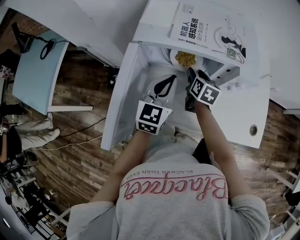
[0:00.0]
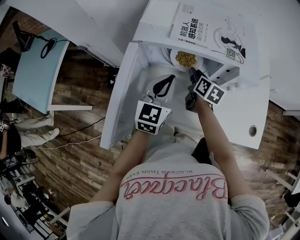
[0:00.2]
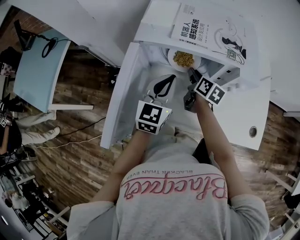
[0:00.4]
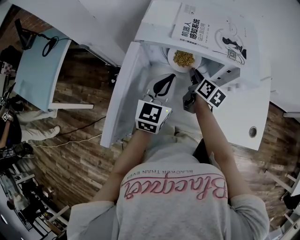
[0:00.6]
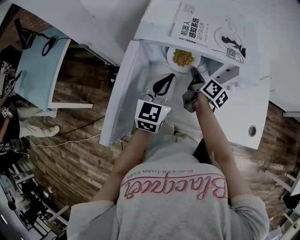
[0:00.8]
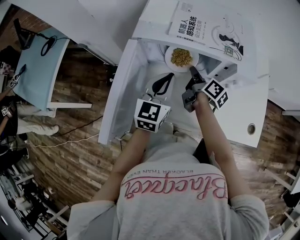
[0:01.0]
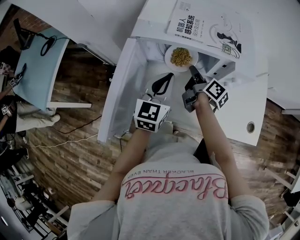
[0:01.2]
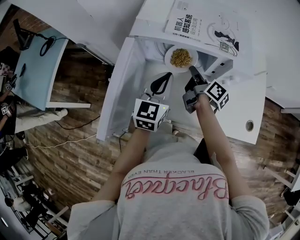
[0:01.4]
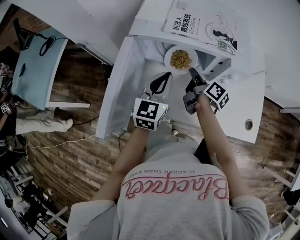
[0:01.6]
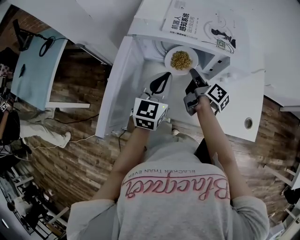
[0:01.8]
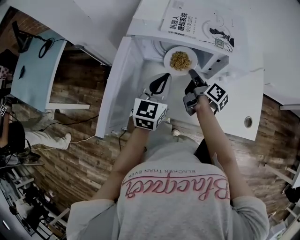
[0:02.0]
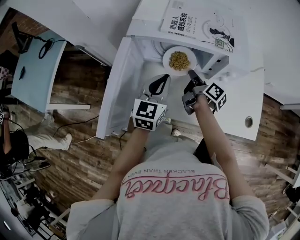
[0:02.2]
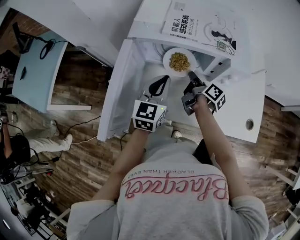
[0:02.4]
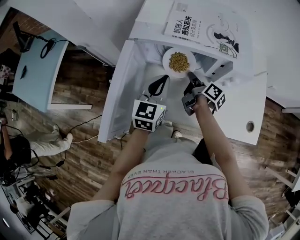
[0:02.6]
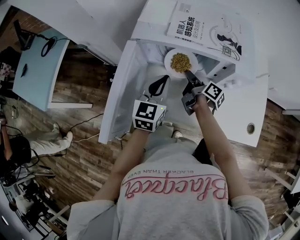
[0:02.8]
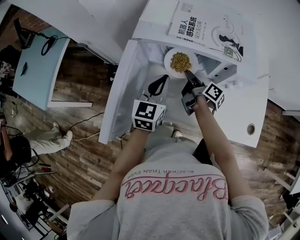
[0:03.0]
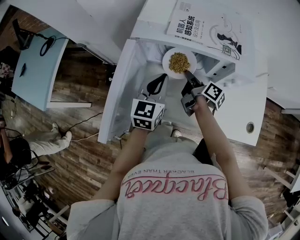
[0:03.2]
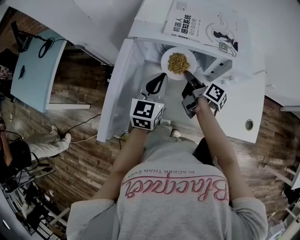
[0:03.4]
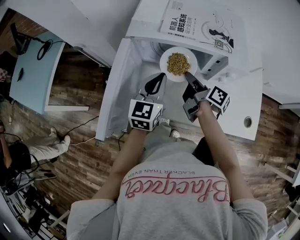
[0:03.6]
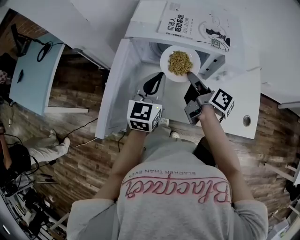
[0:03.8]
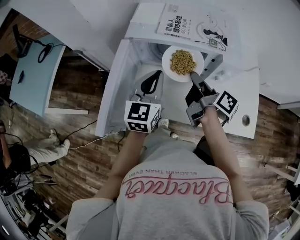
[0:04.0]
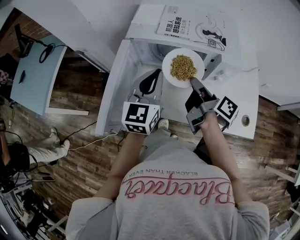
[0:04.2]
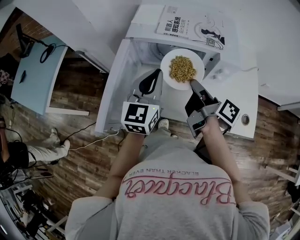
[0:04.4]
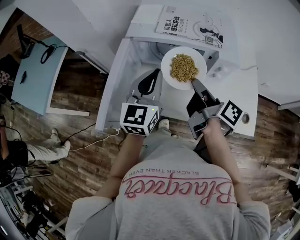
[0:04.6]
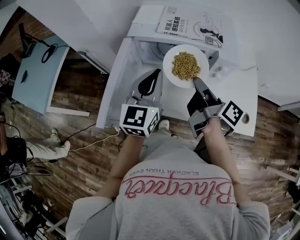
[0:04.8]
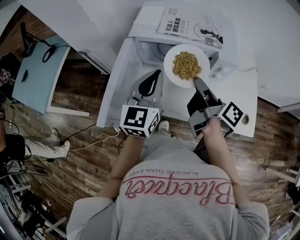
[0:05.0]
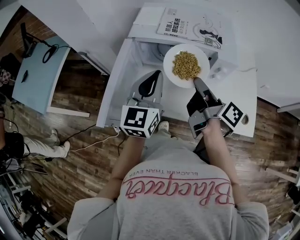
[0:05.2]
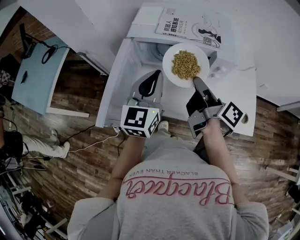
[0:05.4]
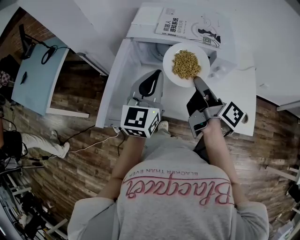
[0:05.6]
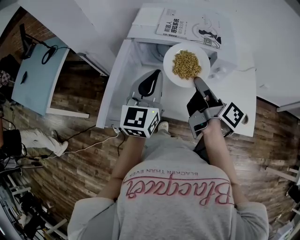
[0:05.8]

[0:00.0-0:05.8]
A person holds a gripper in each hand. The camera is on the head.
0:00.0 to 0:01.4: The right gripper rotates around the line of its fingers by some 40 degrees, clockwise from behind, and closes its fingers.
0:01.4 to 0:02.8: The right gripper heads downward, covering roughly 5 cm.
0:02.8 to 0:04.4: The left gripper shifts approximately 10 cm upward, while the right gripper moves upward and backward, about 20 cm.
0:04.4 to 0:05.8: The grippers stay close to where they were, moving slightly.

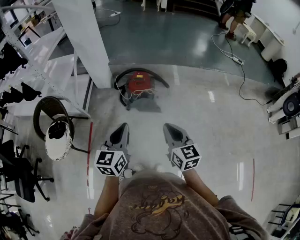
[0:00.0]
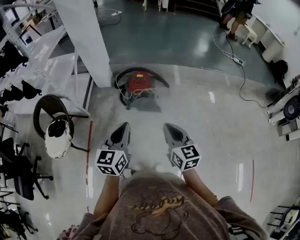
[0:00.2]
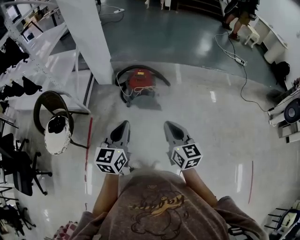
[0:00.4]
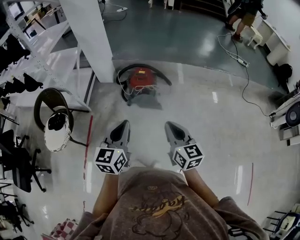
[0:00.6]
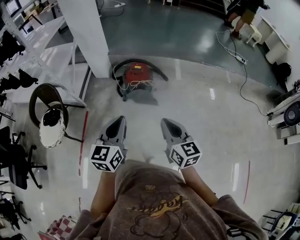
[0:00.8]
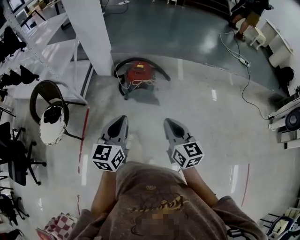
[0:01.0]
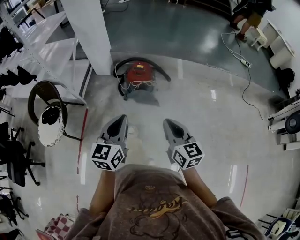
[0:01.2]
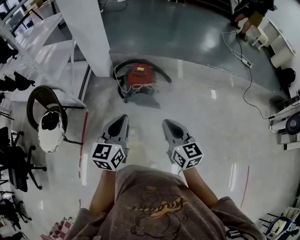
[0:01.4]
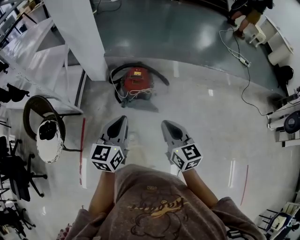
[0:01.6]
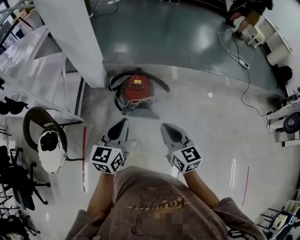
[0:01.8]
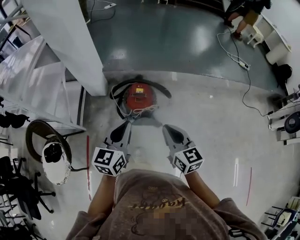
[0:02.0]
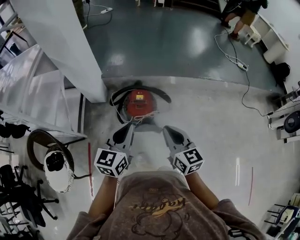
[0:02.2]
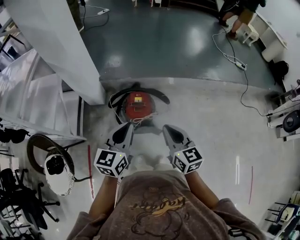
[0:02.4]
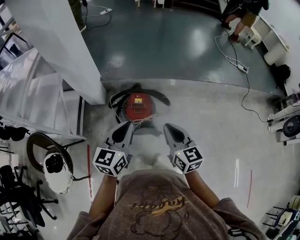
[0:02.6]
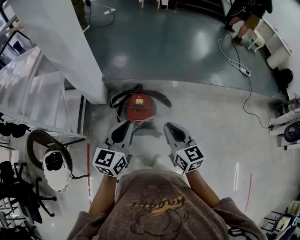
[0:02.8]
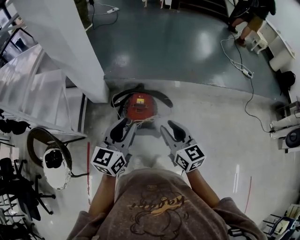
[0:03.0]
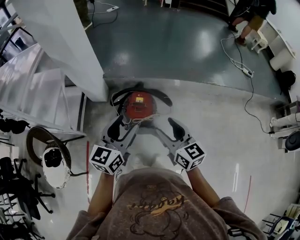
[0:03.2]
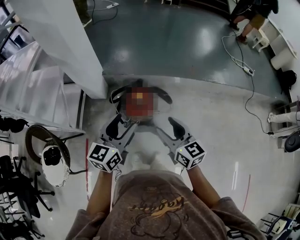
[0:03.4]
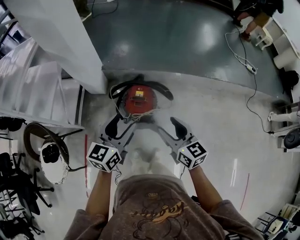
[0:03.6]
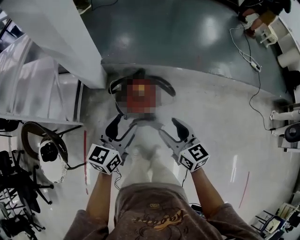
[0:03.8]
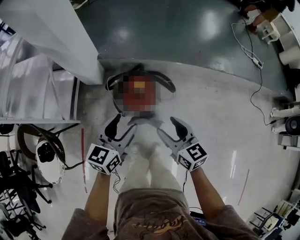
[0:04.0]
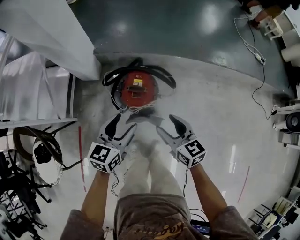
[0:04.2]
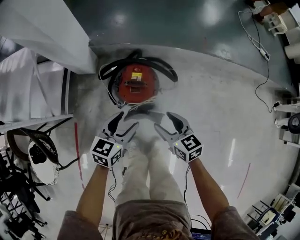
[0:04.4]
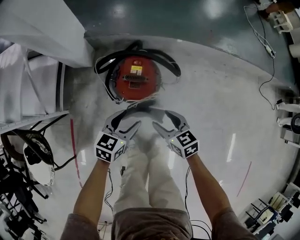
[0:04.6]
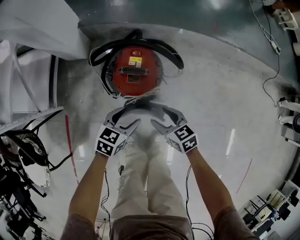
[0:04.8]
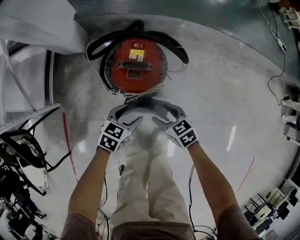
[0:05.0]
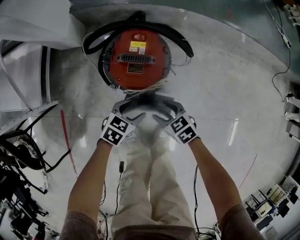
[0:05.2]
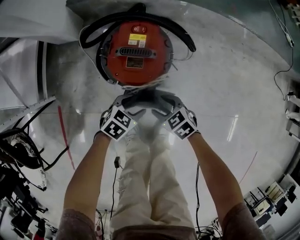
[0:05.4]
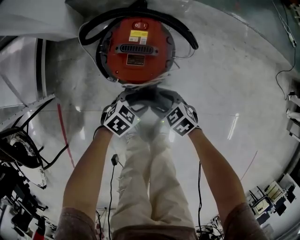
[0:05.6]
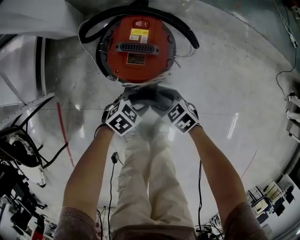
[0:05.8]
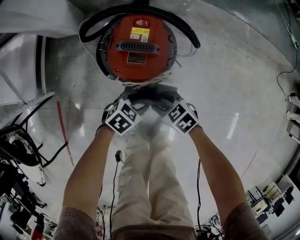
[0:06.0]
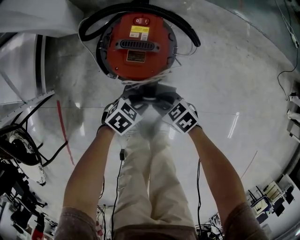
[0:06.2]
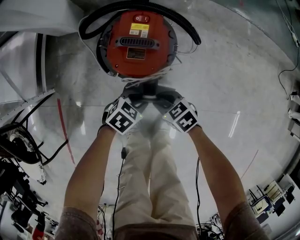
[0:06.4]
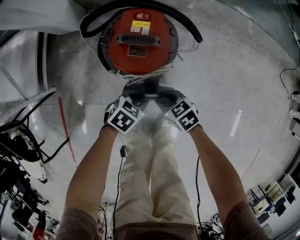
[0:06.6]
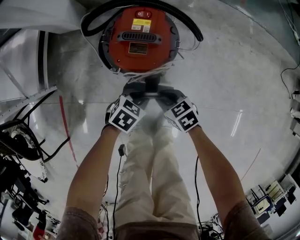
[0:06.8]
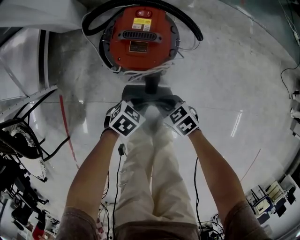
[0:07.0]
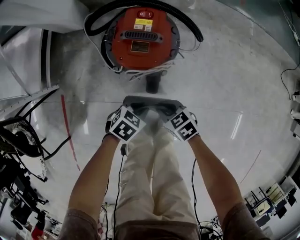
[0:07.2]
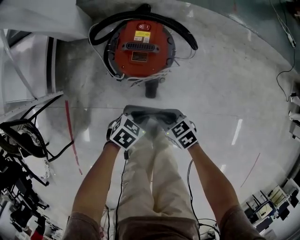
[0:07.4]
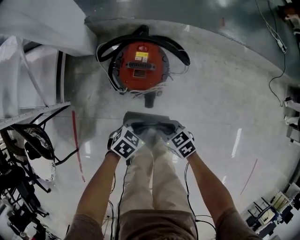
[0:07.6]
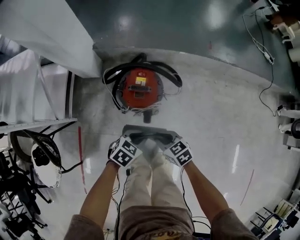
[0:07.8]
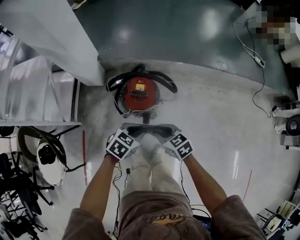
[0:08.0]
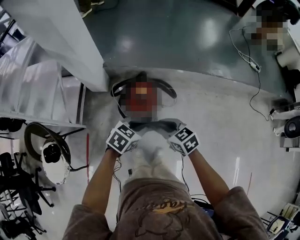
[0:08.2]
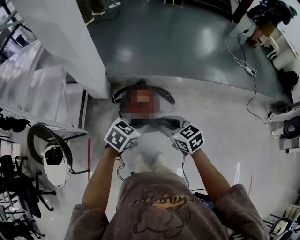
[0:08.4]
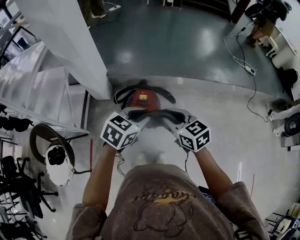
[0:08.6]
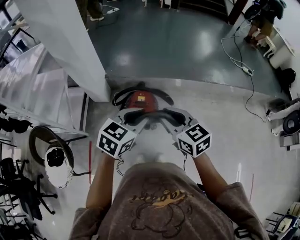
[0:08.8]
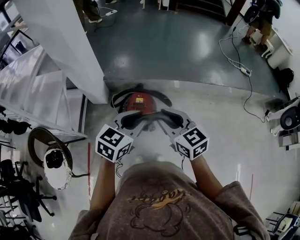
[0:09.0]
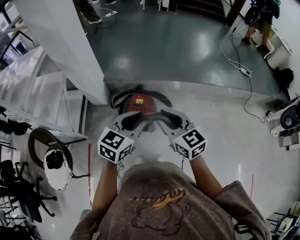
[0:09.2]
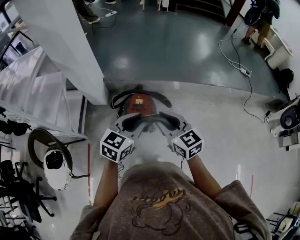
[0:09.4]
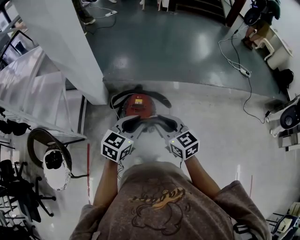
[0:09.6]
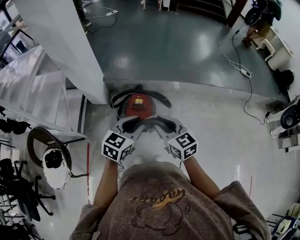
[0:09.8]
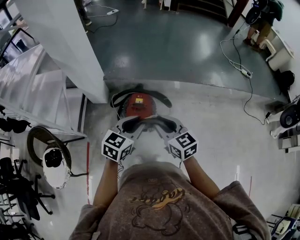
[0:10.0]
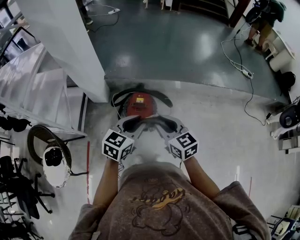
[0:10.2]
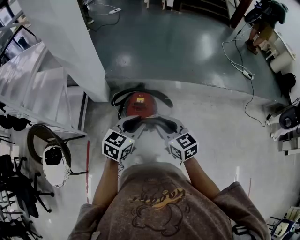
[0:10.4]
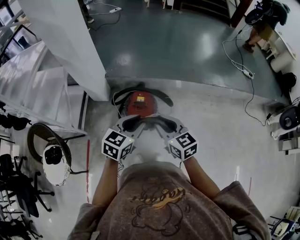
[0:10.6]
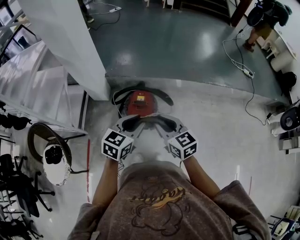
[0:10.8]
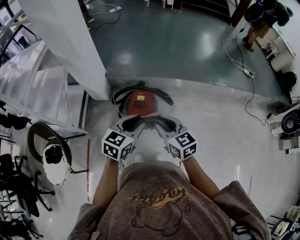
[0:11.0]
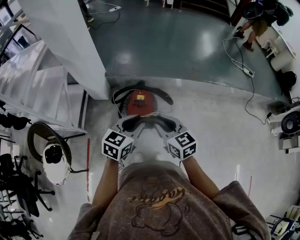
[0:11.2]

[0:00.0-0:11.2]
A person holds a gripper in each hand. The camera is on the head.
0:00.0 to 0:01.6: The grippers both shift forward by roughly 10 cm.
0:01.6 to 0:03.2: The two grippers go some 20 cm forward. The left gripper opens its fingers, while the right gripper opens its fingers.
0:03.2 to 0:04.8: The grippers both shift downward by roughly 40 cm. The left gripper points its fingers about 30 degrees further downward; the right gripper angles its fingers downward, by about 30 degrees.
0:04.8 to 0:06.4: Both grippers move downward, about 15 cm. The left gripper swivels about 20 degrees, and closes up. Meanwhile the right gripper rotates roughly 20 degrees, and closes up.
0:06.4 to 0:08.0: Both grippers move upward, about 35 cm. The right gripper turns by approximately 20 degrees.
0:08.0 to 0:09.6: Both grippers move upward, about 20 cm. The right gripper rotates some 30 degrees; the left gripper rotates some 30 degrees.
0:09.6 to 0:11.2: The grippers make only small movements.

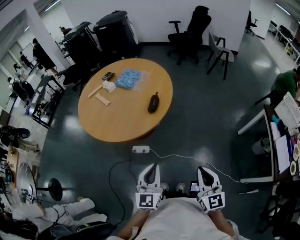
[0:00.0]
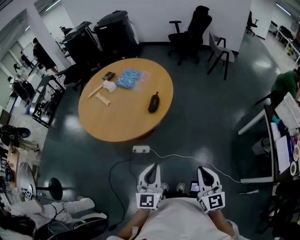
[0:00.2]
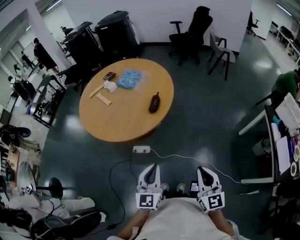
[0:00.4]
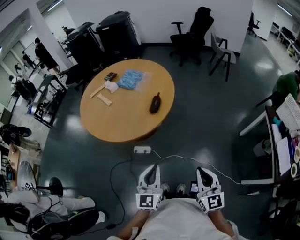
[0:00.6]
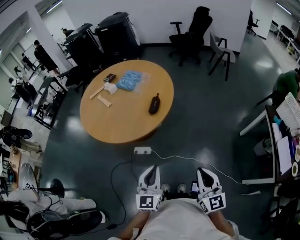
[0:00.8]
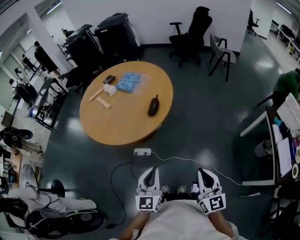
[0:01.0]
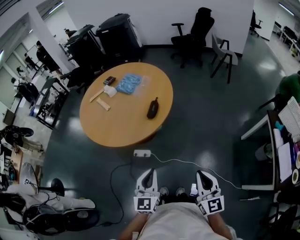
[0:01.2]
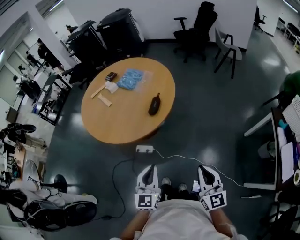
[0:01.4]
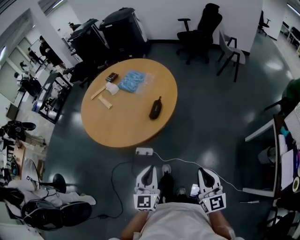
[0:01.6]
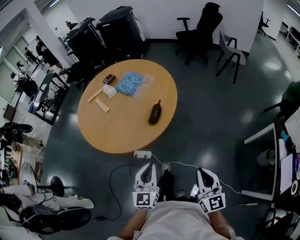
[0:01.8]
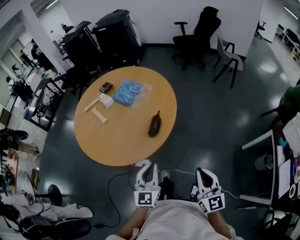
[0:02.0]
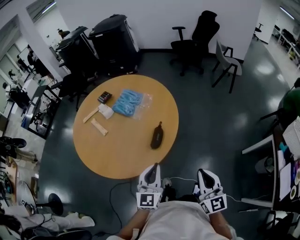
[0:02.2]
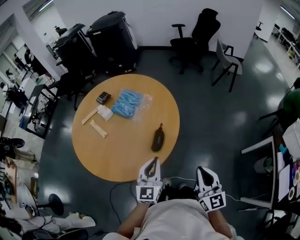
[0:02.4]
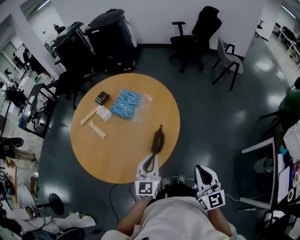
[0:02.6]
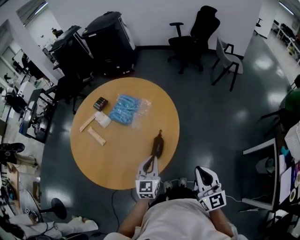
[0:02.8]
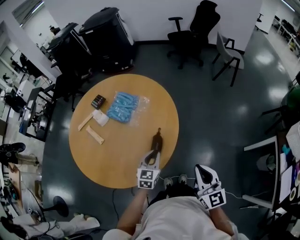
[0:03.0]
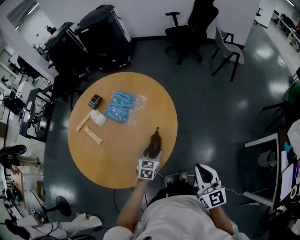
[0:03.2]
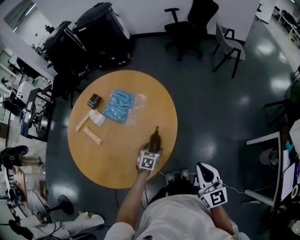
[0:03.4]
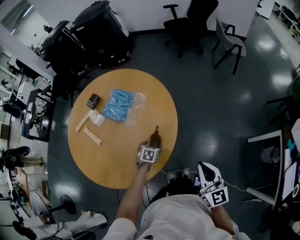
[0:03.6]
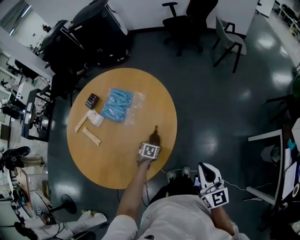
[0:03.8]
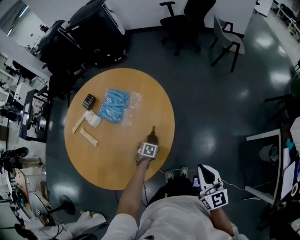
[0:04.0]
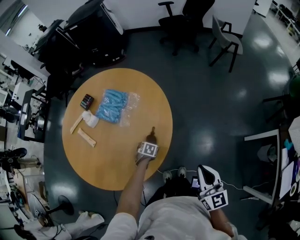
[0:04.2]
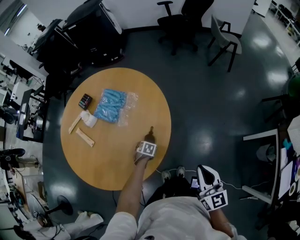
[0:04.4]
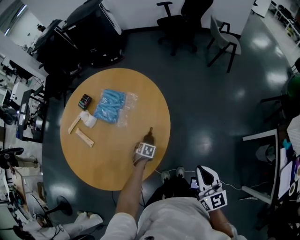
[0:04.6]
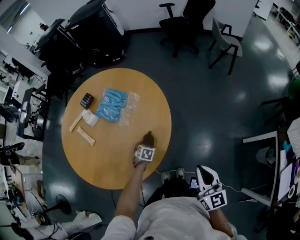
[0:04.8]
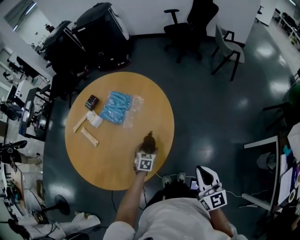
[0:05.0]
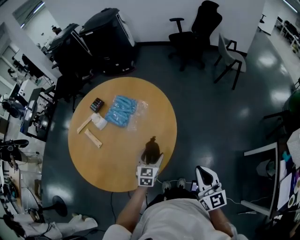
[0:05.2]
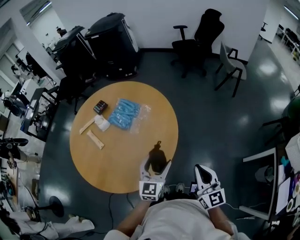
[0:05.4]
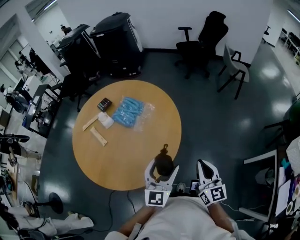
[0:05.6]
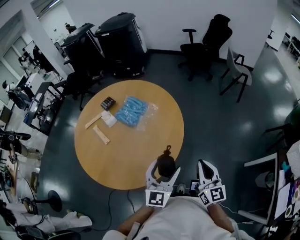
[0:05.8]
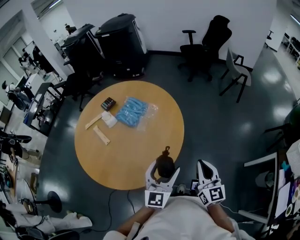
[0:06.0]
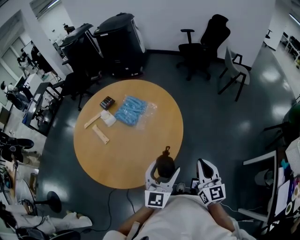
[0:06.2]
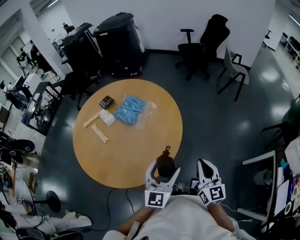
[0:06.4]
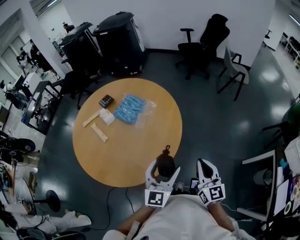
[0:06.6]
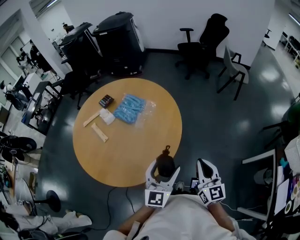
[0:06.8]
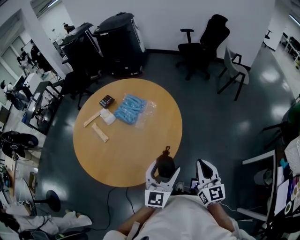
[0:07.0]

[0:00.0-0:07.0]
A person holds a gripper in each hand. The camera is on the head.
0:00.0 to 0:01.4: The right gripper travels forward by about 5 cm.
0:01.4 to 0:02.8: The two grippers go some 35 cm forward.
0:02.8 to 0:04.2: The left gripper travels downward by about 30 cm, angles its fingers downward, by approximately 60 degrees, and opens. The right gripper moves about 10 cm.
0:04.2 to 0:05.6: The left gripper goes some 40 cm upward, and tilts its fingers roughly 70 degrees upward; the right gripper ends up approximately 5 cm from where it was.
0:05.6 to 0:07.0: The grippers move only a little.
